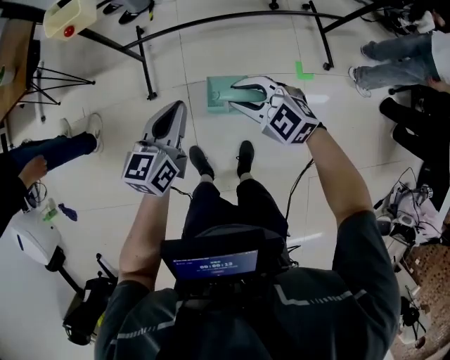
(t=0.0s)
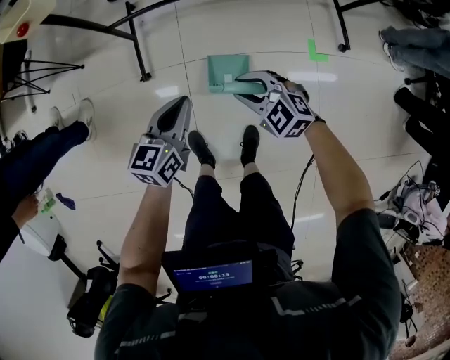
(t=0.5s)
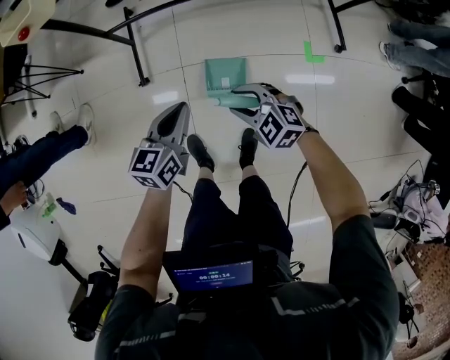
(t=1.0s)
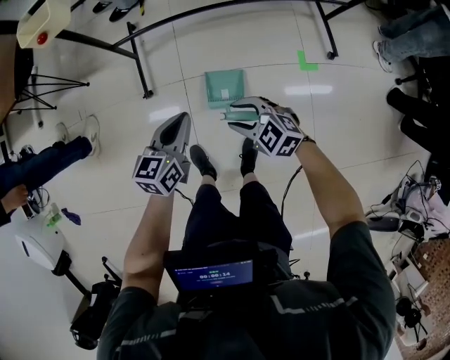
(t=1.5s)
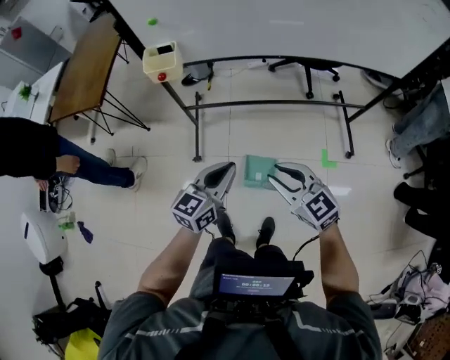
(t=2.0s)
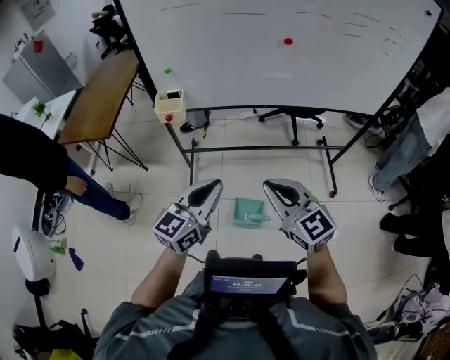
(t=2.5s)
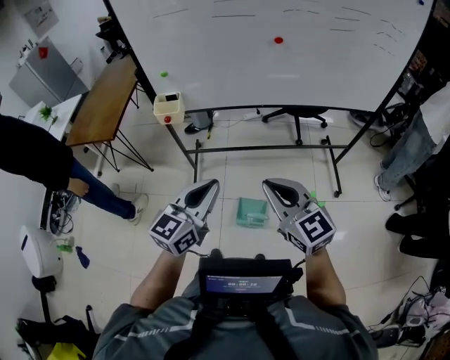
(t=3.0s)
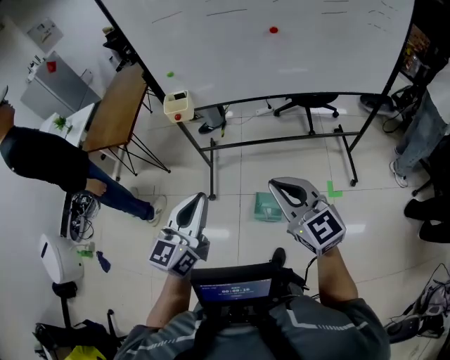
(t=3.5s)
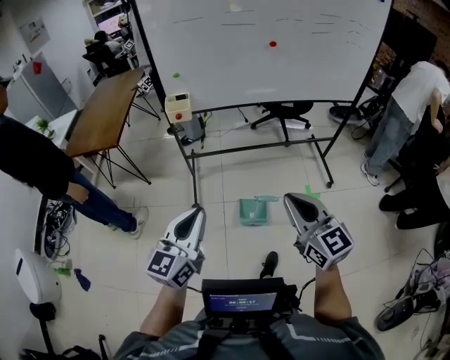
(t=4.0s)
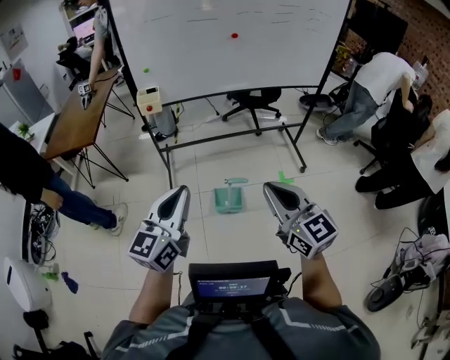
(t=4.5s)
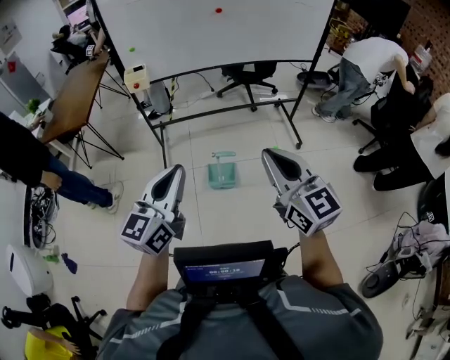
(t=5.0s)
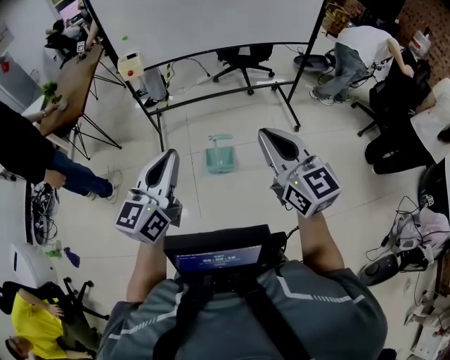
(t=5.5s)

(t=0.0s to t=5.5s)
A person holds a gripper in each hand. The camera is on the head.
t=0.0s - t=2.0s: The two grippers go roughly 15 cm upward. The right gripper changes its angle by roughly 20 degrees.
t=2.0s - t=3.5s: The grippers both shift upward and backward by some 25 cm. The right gripper closes up; the left gripper rotates roughly 20 degrees.
t=3.5s - t=5.5s: The two grippers go about 30 cm backward. The right gripper swivels approximately 20 degrees.

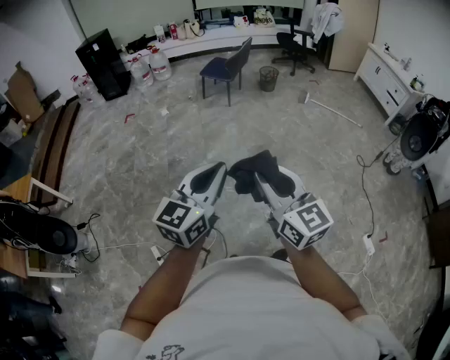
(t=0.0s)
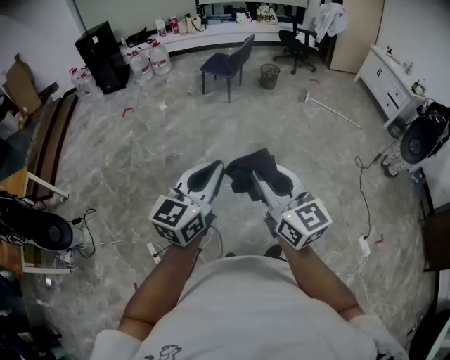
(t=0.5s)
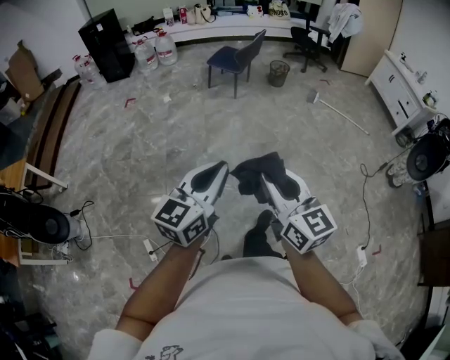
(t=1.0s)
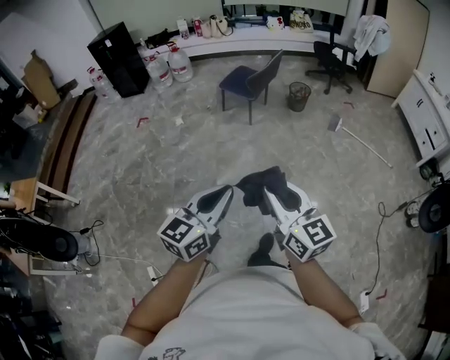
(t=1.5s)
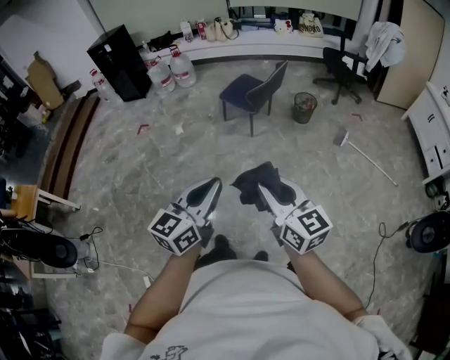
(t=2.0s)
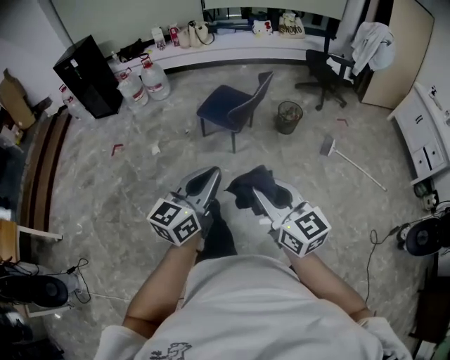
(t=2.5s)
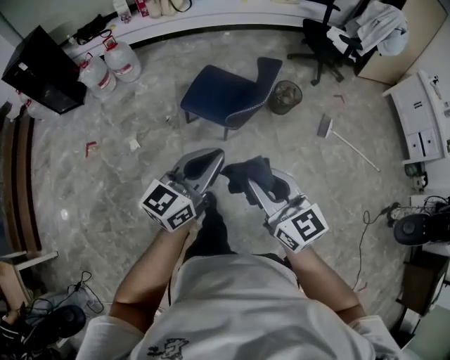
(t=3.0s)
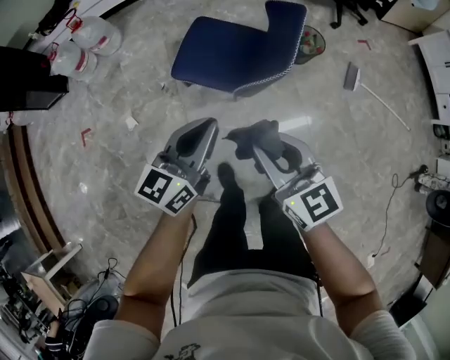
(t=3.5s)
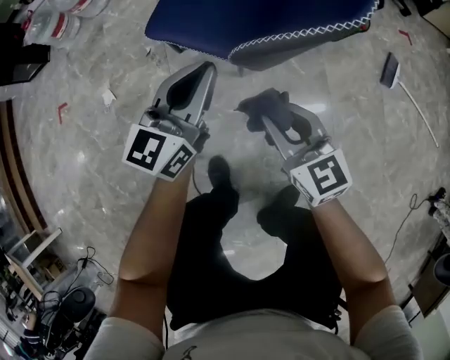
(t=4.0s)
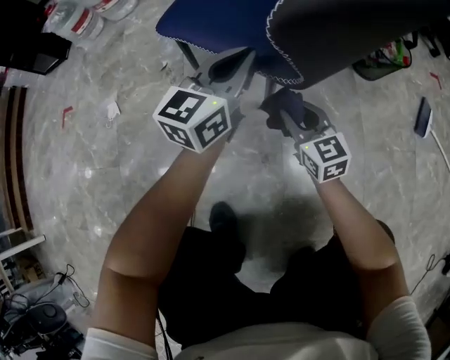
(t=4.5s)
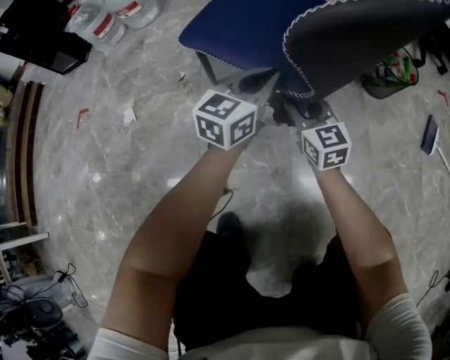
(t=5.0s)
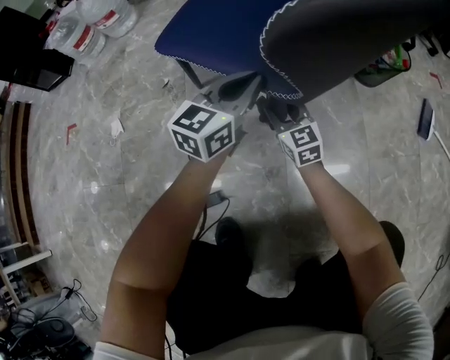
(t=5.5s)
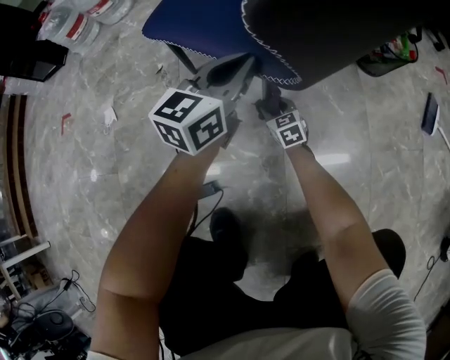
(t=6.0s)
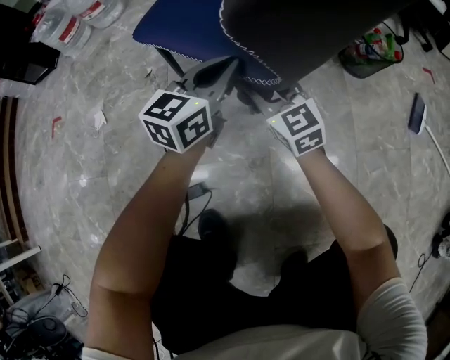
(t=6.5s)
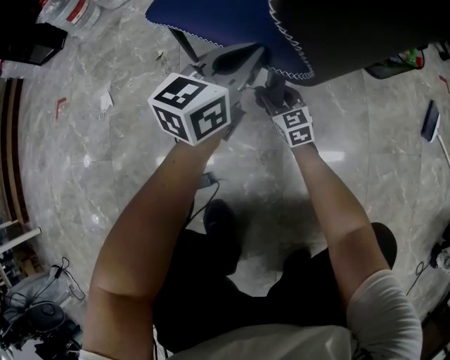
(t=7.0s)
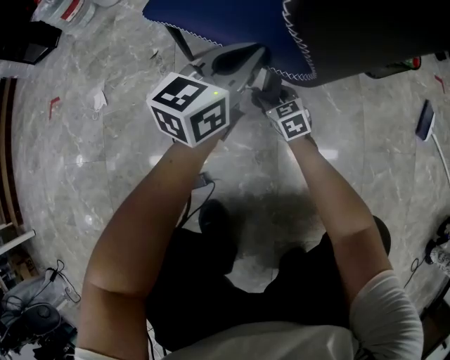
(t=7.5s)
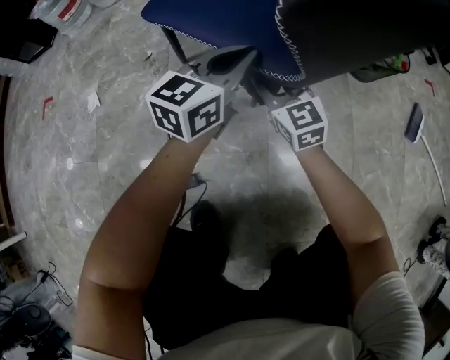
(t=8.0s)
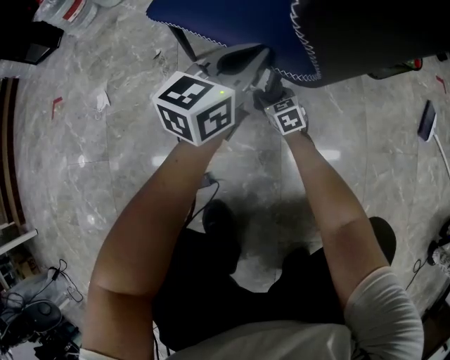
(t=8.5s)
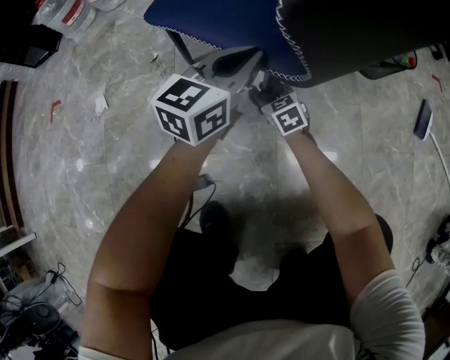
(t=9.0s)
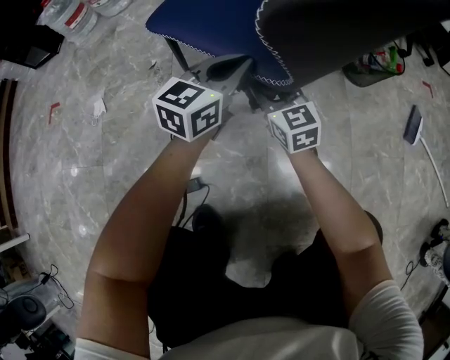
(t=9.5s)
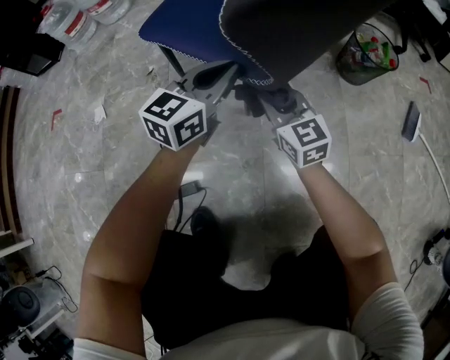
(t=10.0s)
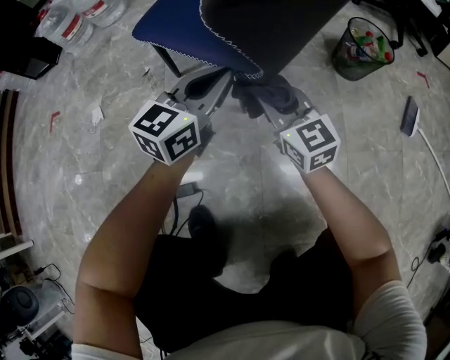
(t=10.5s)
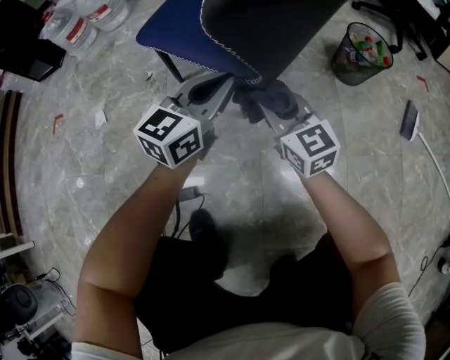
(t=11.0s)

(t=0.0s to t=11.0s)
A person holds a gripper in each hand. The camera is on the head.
t=0.0s - t=2.0s: The pair of grippers is taken forward, approximately 60 cm.
t=2.0s - t=3.5s: The two grippers travel together, forward, roughly 70 cm.
t=3.5s - t=5.5s: The two grippers go roughly 60 cm downward.
t=5.5s - t=7.5s: The right gripper goes up and down, some 25 cm each way, reversing 2 times, and turns by some 20 degrees.
t=7.5s - t=9.0s: The right gripper swings up and down, approximately 25 cm each way, with 2 reversals.
t=9.0s - t=11.0s: The right gripper goes some 25 cm upward, angles its fingers upward, by roughly 30 degrees, and closes up. Meanwhile the left gripper shifts about 5 cm backward.

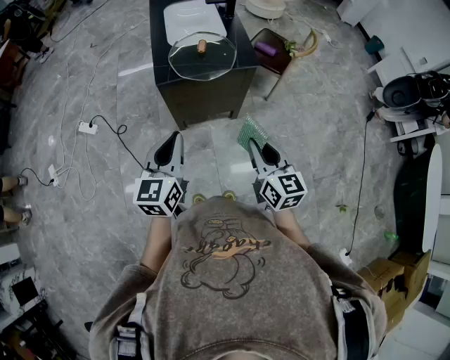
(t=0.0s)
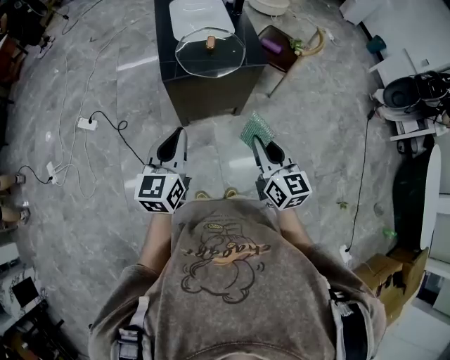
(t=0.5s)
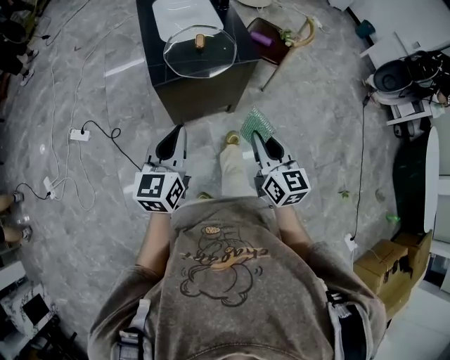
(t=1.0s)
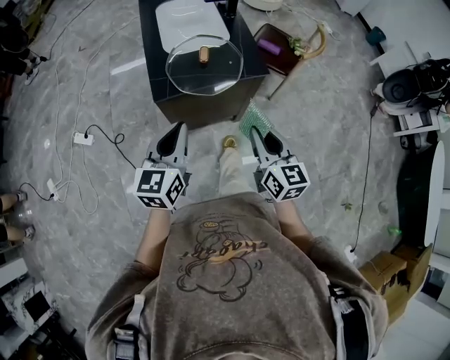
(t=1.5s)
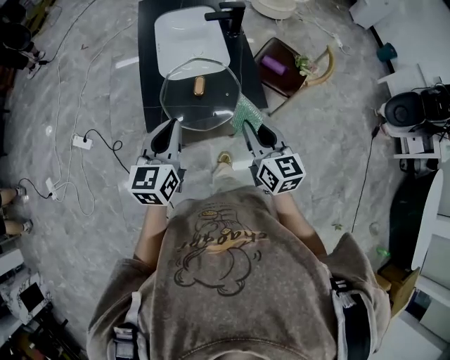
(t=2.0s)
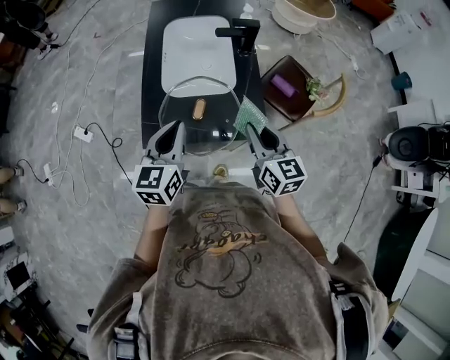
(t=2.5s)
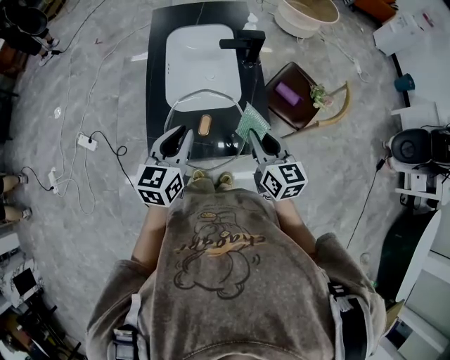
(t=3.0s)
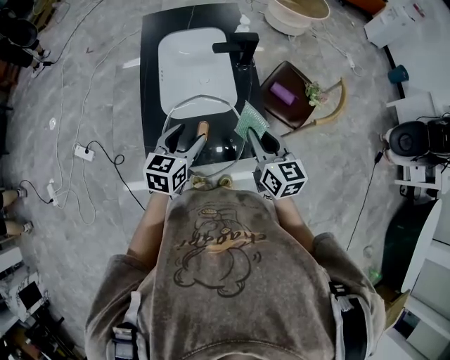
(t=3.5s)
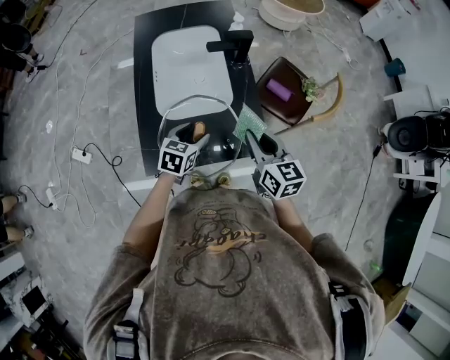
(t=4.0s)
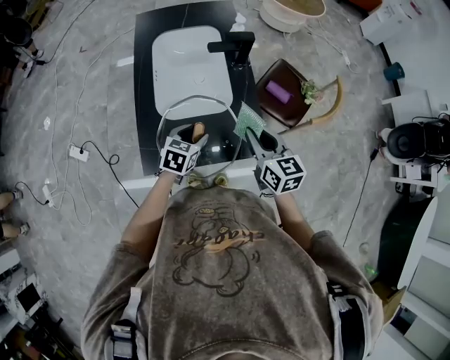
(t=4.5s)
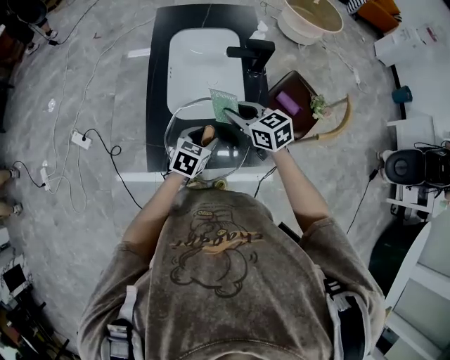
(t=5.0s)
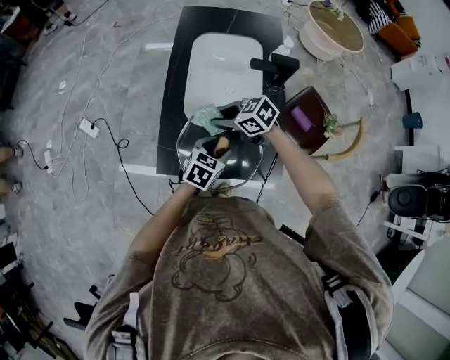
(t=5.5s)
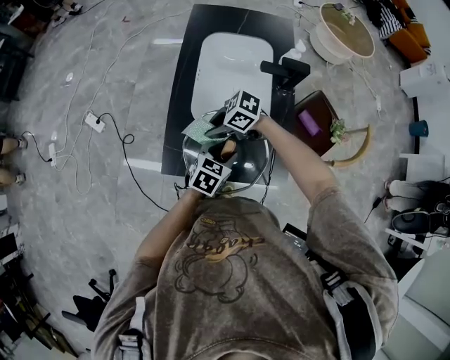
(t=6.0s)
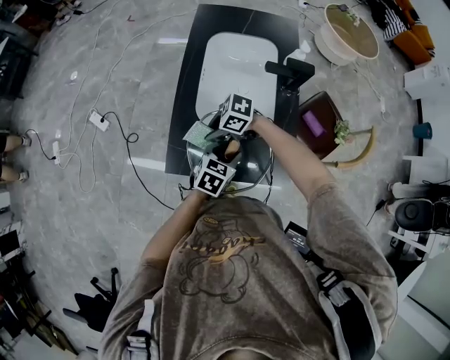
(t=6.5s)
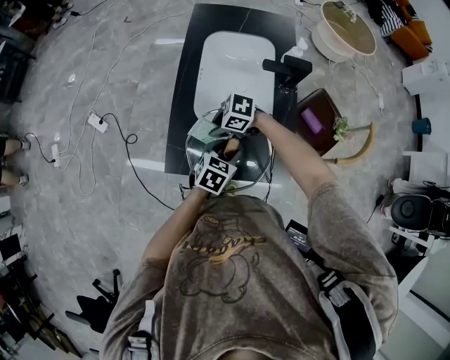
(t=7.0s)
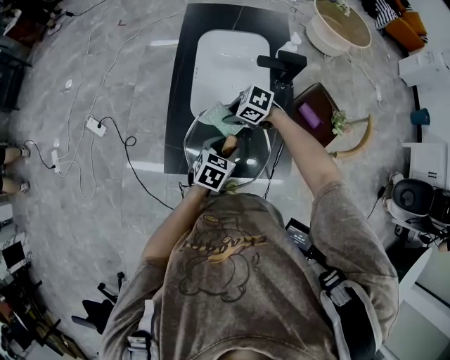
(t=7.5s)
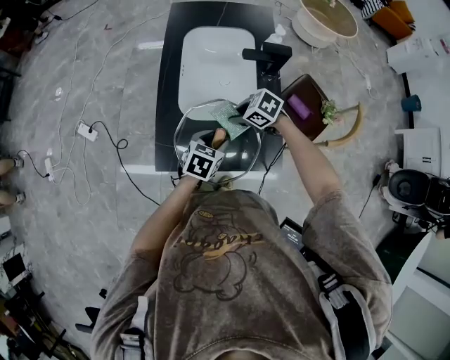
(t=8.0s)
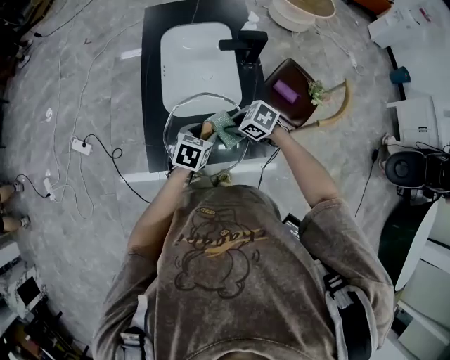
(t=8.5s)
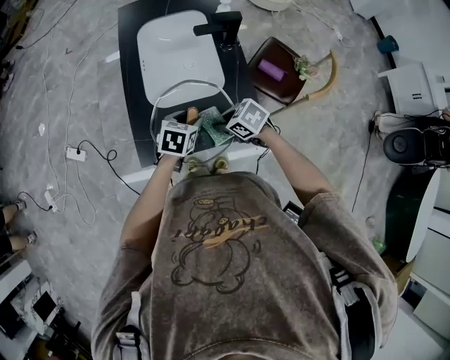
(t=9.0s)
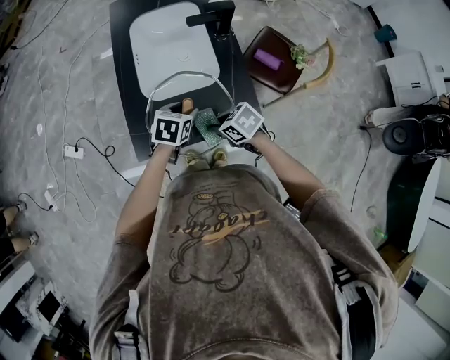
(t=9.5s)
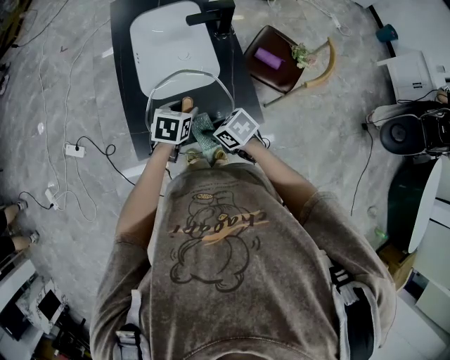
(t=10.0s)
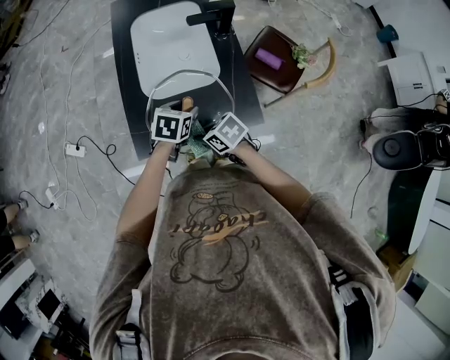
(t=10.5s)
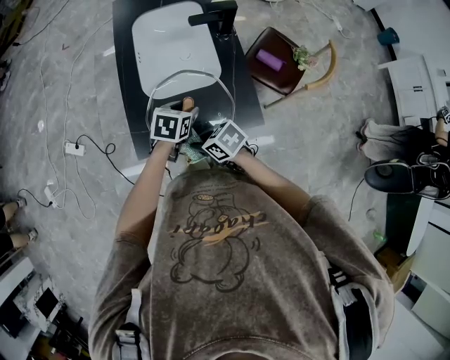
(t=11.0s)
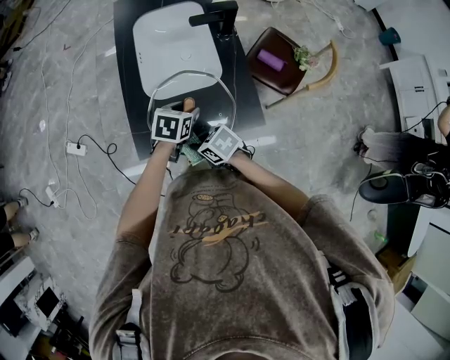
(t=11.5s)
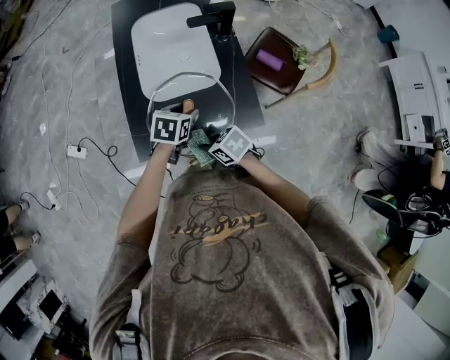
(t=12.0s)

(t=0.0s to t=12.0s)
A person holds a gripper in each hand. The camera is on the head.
t=0.0s - t=2.0s: The two grippers go about 30 cm forward.
t=2.0s - t=4.0s: The right gripper heads forward, covering approximately 15 cm. Meanwhile the left gripper is displaced forward and downward by roughly 25 cm, rotates some 30 degrees, and opens up.
t=4.0s - t=6.0s: The right gripper ends up some 25 cm from where it was, and swivels about 90 degrees.
t=6.0s - t=8.0s: The right gripper ends up about 10 cm from where it was, and changes its angle by some 20 degrees.
t=8.0s - t=10.0s: The right gripper moves about 15 cm, and changes its angle by approximately 30 degrees.
